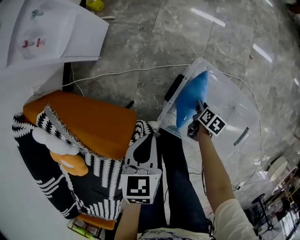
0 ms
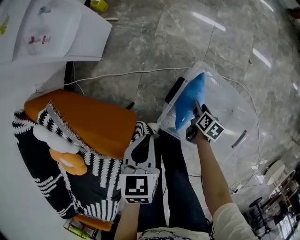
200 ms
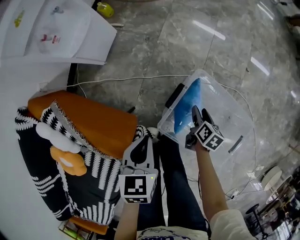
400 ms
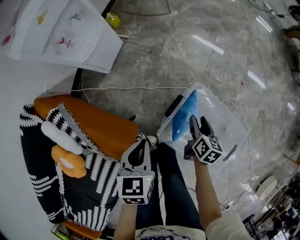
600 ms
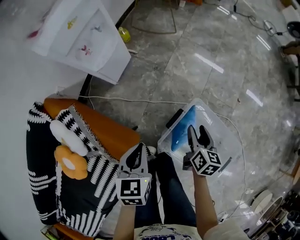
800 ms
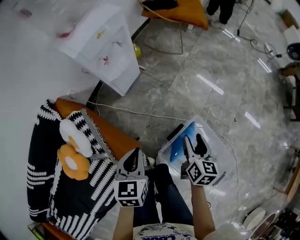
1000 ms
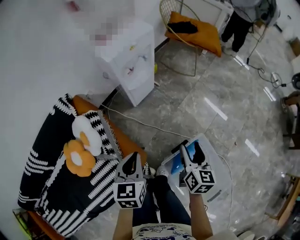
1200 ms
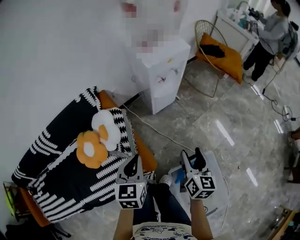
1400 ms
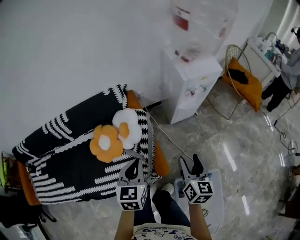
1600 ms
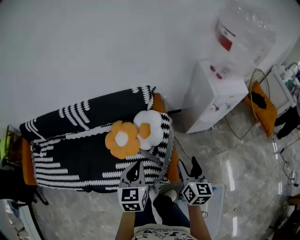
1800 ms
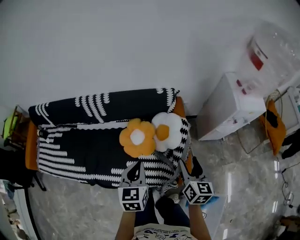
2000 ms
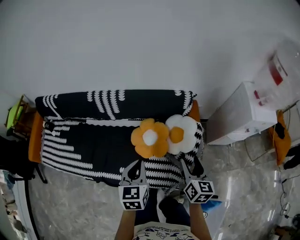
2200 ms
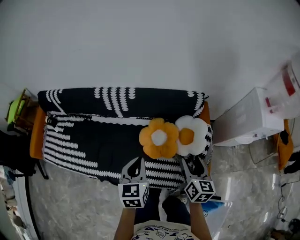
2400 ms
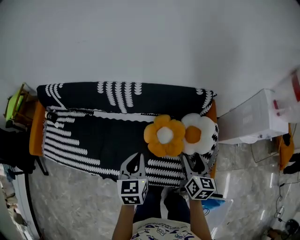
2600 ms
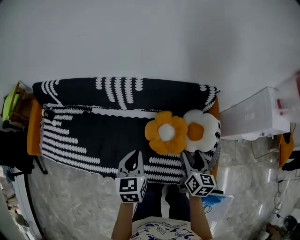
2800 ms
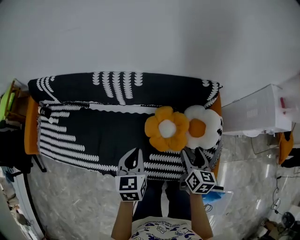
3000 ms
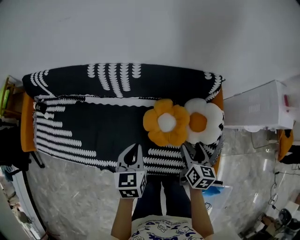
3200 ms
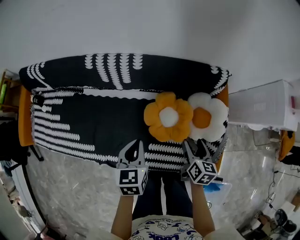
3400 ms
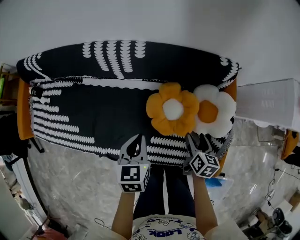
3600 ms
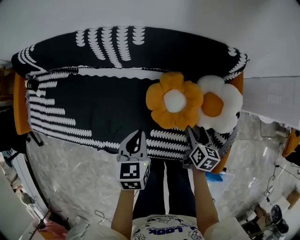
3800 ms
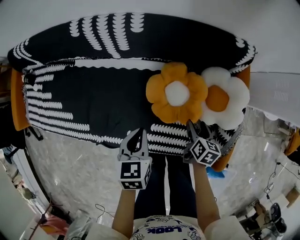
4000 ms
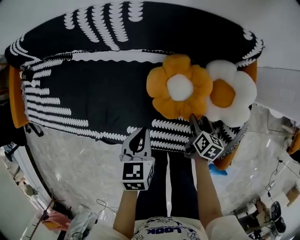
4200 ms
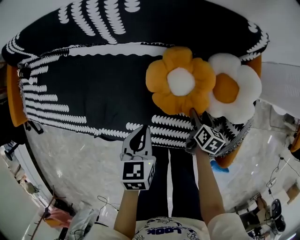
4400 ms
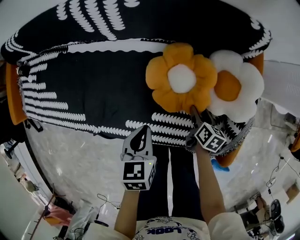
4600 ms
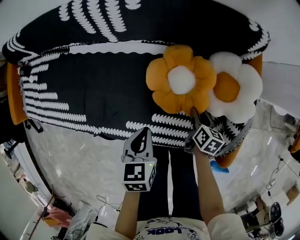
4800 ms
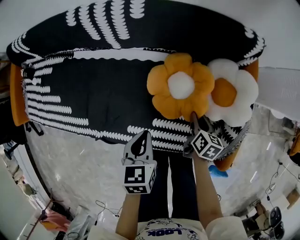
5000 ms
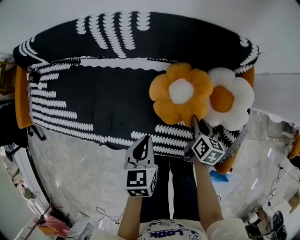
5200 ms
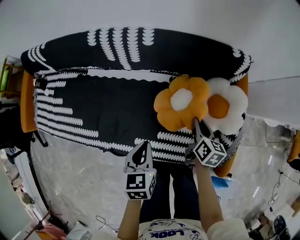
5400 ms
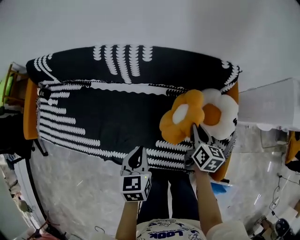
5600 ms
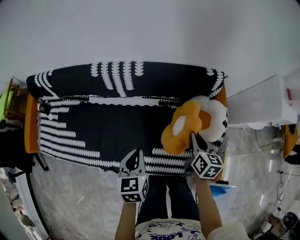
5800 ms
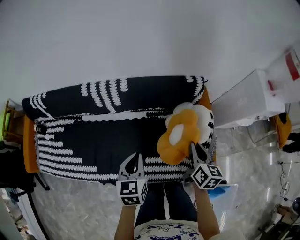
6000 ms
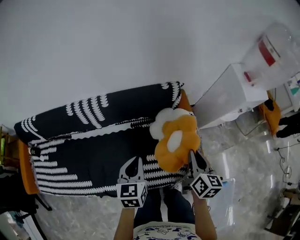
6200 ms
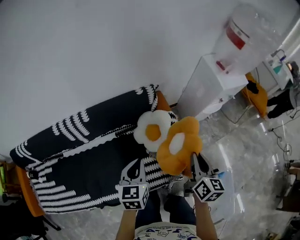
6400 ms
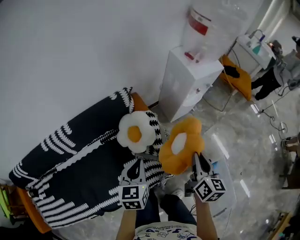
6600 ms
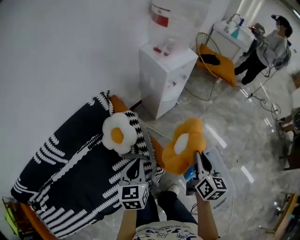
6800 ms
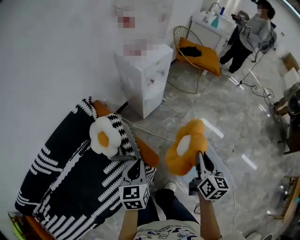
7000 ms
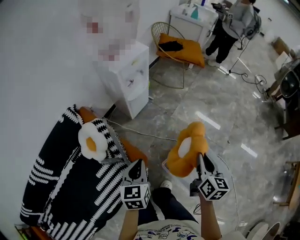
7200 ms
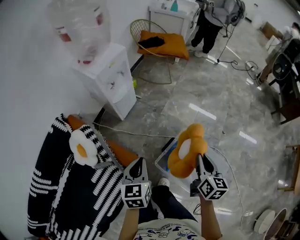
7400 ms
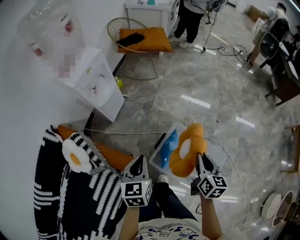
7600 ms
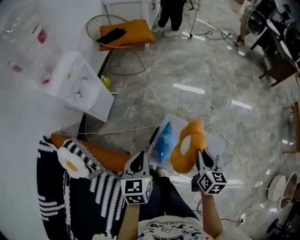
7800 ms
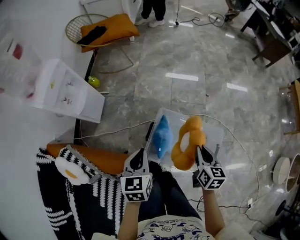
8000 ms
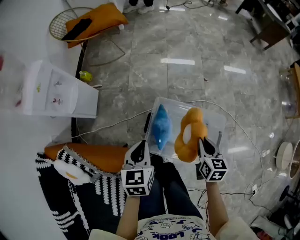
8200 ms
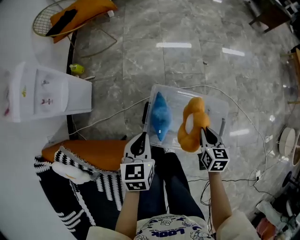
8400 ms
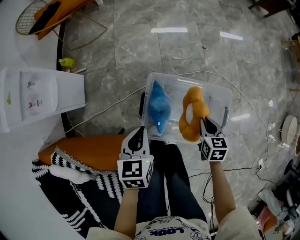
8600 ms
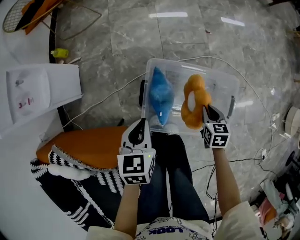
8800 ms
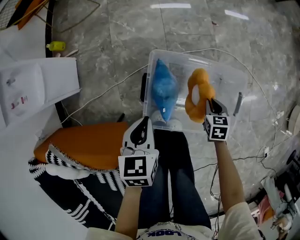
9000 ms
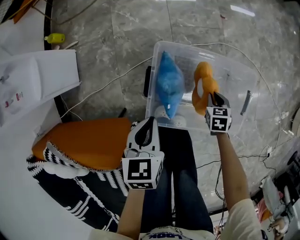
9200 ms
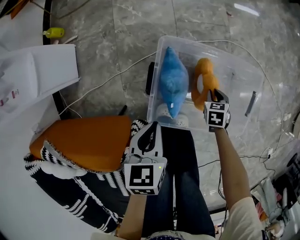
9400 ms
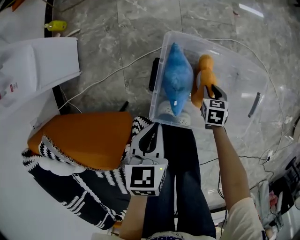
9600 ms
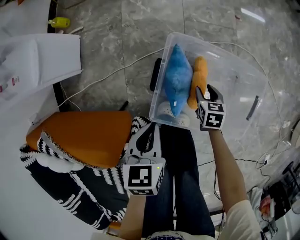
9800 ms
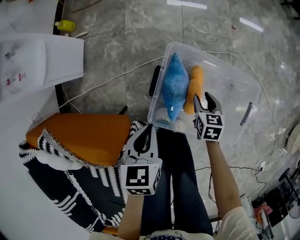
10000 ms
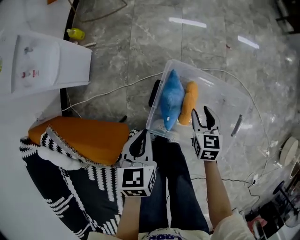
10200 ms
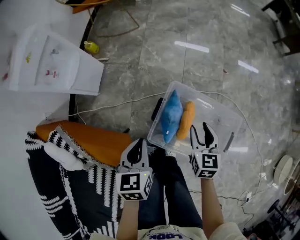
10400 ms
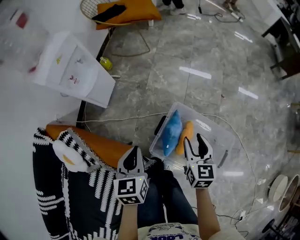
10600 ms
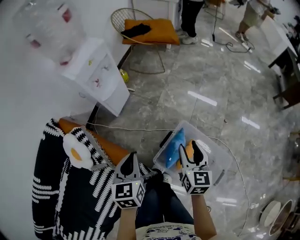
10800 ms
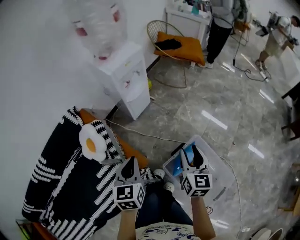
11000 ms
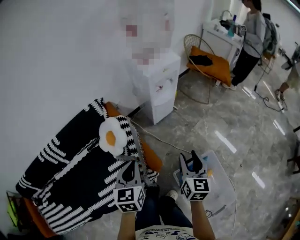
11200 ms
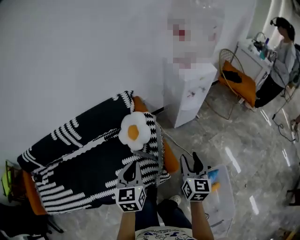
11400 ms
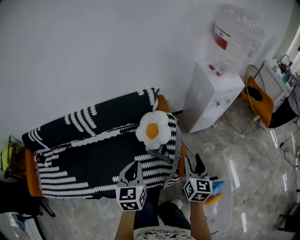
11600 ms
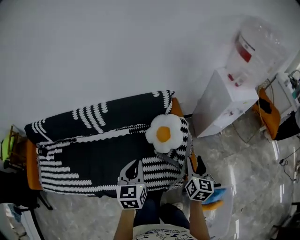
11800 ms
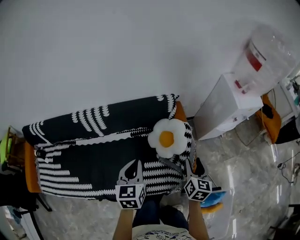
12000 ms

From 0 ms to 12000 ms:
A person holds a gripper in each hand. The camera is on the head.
From 0 ms to 1600 ms: The right gripper goes some 60 cm upward, and tilts its fingers some 40 degrees upward; the left gripper ends up some 50 cm from where it was, and swivels some 60 degrees.
From 1600 ms to 3000 ms: Both grippers are carried about 50 cm. The left gripper changes its angle by about 30 degrees. The right gripper turns by approximately 30 degrees.
From 3000 ms to 4400 ms: The grippers both shift downward by about 25 cm. The right gripper changes its angle by approximately 20 degrees.
From 4400 ms to 6000 ms: The right gripper goes roughly 35 cm upward, turns by some 30 degrees, and closes its fingers, while the left gripper heads upward, covering some 20 cm, and swivels about 20 degrees.
From 6000 ms to 7600 ms: The pair of grippers is taken approximately 70 cm. The right gripper changes its angle by about 70 degrees. The left gripper turns by some 70 degrees.
From 7600 ms to 9000 ms: Both grippers travel together downward, roughly 35 cm. The right gripper angles its fingers downward, by some 40 degrees. Meanwhile the left gripper swivels approximately 40 degrees.
From 9000 ms to 10400 ms: The left gripper goes about 10 cm upward, and rotates approximately 20 degrees; the right gripper travels upward by approximately 20 cm, changes its angle by roughly 30 degrees, and opens its fingers.
From 10400 ms to 12000 ms: Both grippers are carried roughly 70 cm. The right gripper rotates about 60 degrees; the left gripper swivels about 70 degrees.

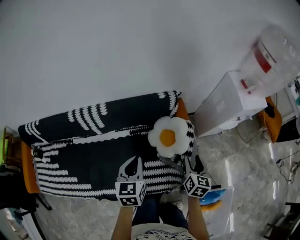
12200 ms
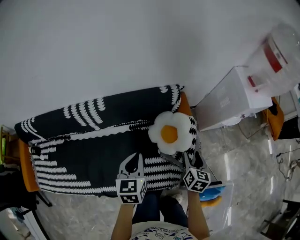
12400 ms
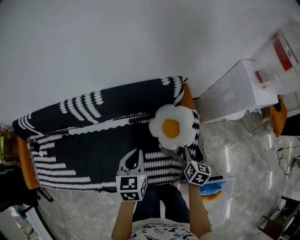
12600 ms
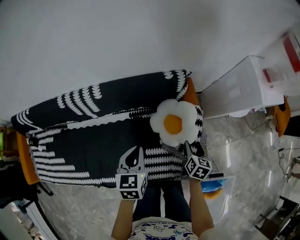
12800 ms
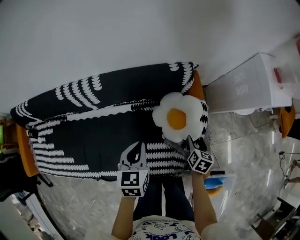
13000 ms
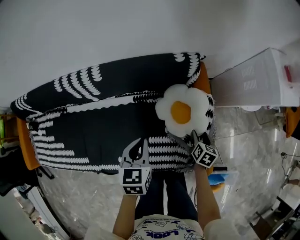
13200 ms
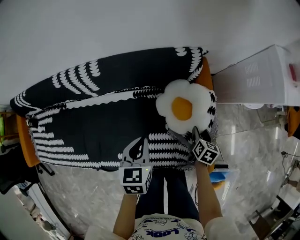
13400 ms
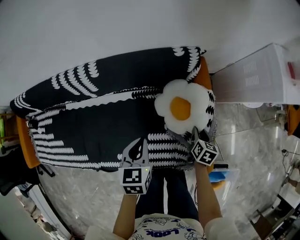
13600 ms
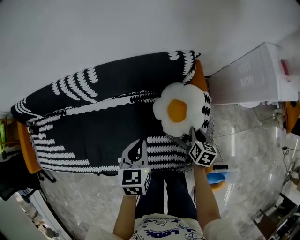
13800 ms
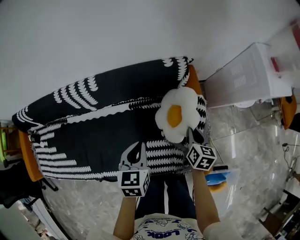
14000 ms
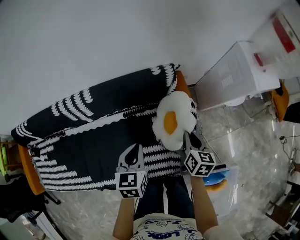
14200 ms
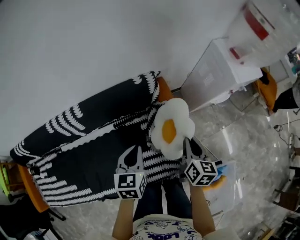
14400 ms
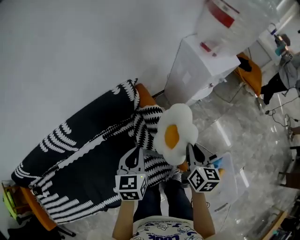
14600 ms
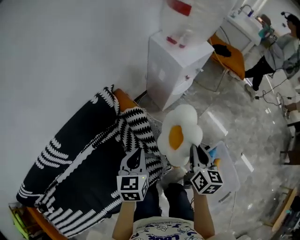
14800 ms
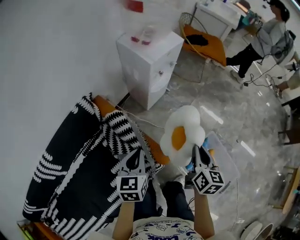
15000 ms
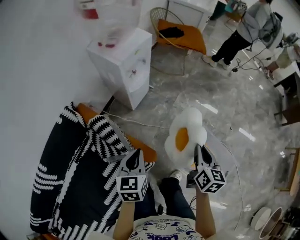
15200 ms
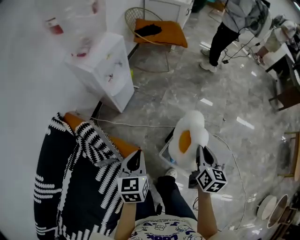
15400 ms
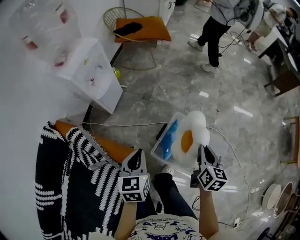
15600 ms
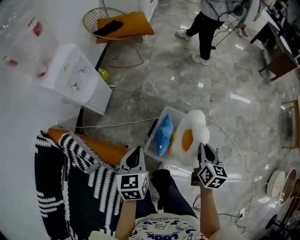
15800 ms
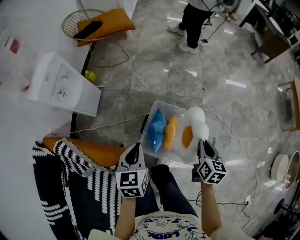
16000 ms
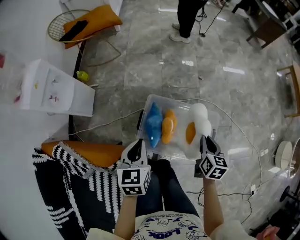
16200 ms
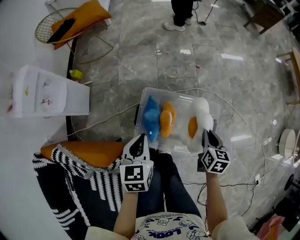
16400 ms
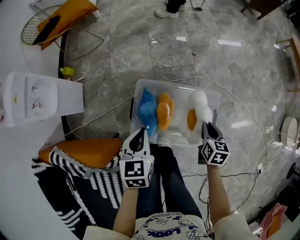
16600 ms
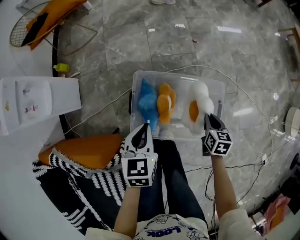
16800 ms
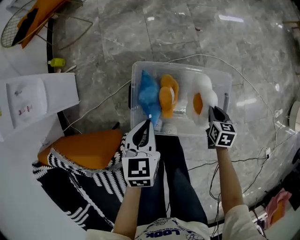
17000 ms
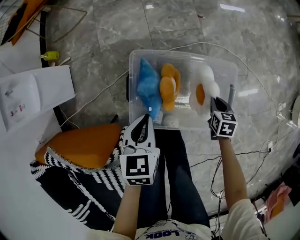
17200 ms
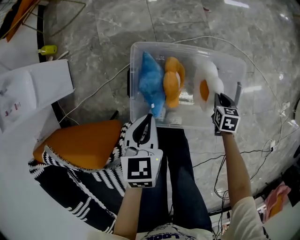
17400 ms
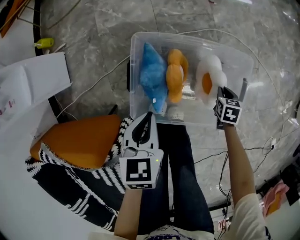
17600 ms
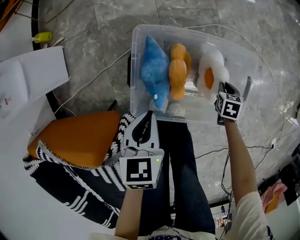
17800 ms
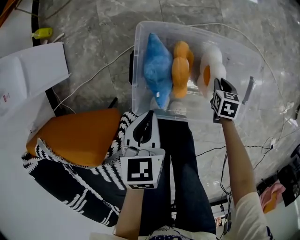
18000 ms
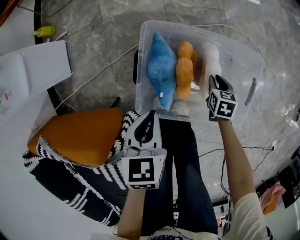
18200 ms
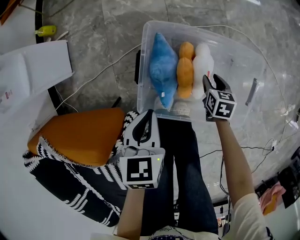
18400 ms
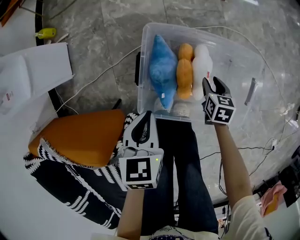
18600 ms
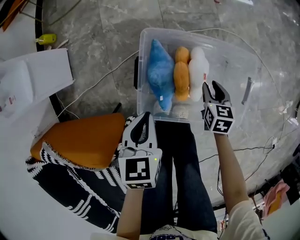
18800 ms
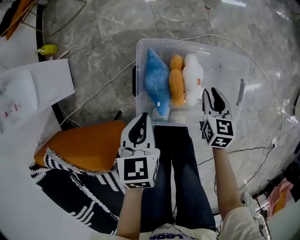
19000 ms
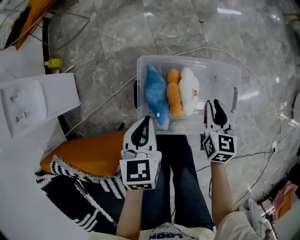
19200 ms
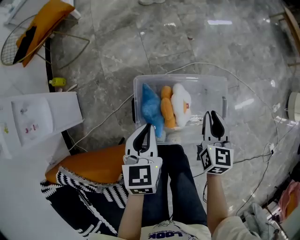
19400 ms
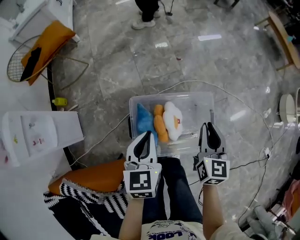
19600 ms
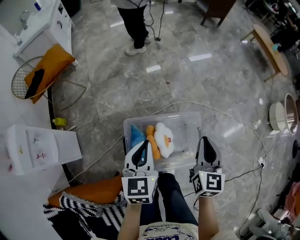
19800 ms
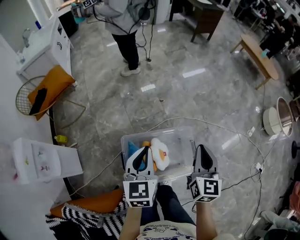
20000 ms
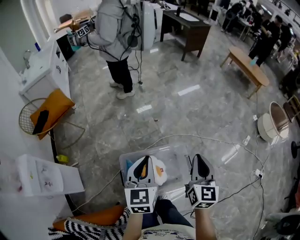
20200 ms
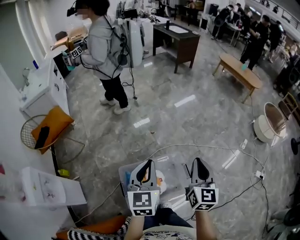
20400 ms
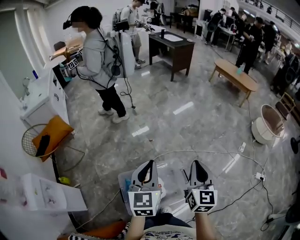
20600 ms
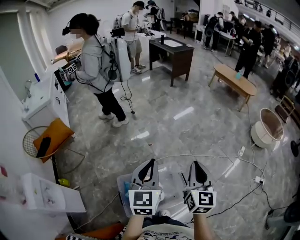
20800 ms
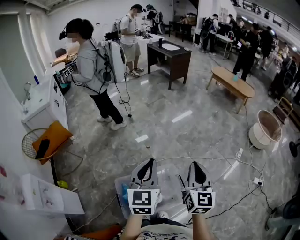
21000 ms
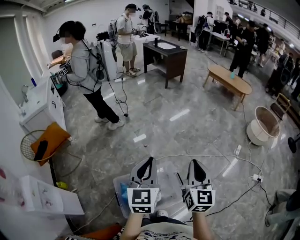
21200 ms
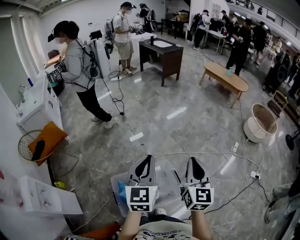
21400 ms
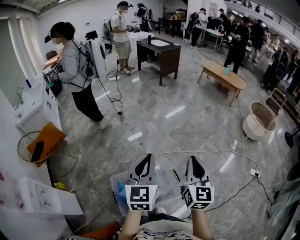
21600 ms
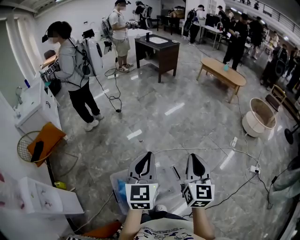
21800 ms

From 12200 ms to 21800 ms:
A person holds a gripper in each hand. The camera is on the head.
From 12200 ms to 13800 ms: The left gripper is displaced downward by approximately 15 cm, while the right gripper heads downward and forward, covering approximately 25 cm, rotates about 20 degrees, and closes.
From 13800 ms to 15400 ms: Both grippers are carried about 60 cm. The right gripper turns by about 60 degrees. The left gripper swivels roughly 60 degrees.
From 15400 ms to 17000 ms: The left gripper moves approximately 50 cm, and changes its angle by about 40 degrees. The right gripper goes about 40 cm downward, and rotates some 30 degrees.
From 17000 ms to 18600 ms: Both grippers move downward and to the left, roughly 20 cm. The right gripper opens its fingers.
From 18600 ms to 20200 ms: The grippers both shift upward by some 60 cm. The right gripper points its fingers about 50 degrees further upward, and closes its fingers. Meanwhile the left gripper angles its fingers upward, by some 30 degrees.
From 20200 ms to 21800 ms: The two grippers go approximately 20 cm to the right and upward.

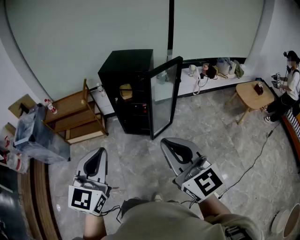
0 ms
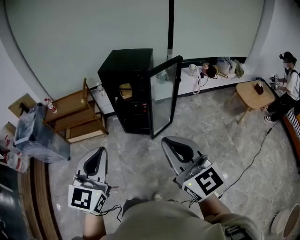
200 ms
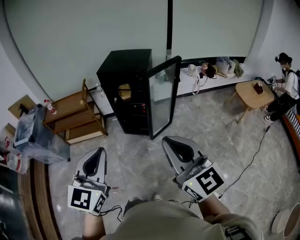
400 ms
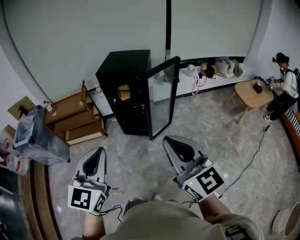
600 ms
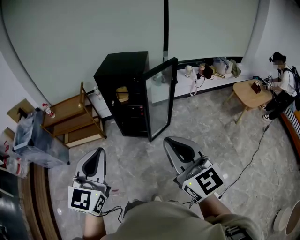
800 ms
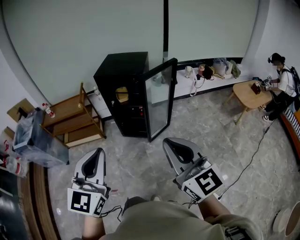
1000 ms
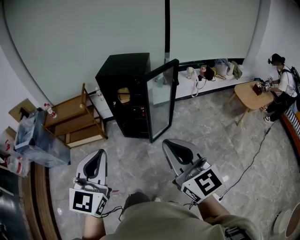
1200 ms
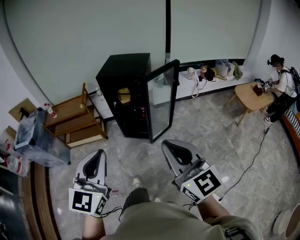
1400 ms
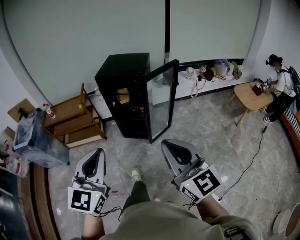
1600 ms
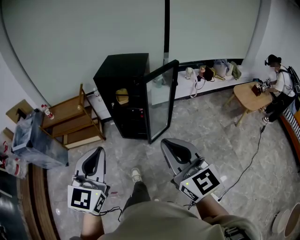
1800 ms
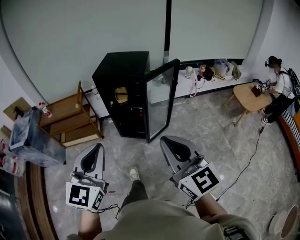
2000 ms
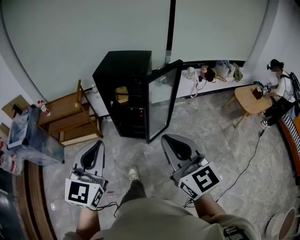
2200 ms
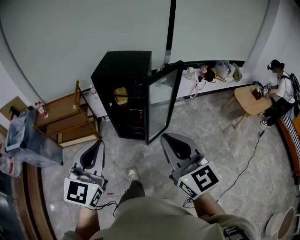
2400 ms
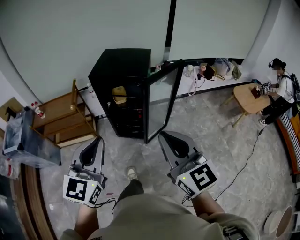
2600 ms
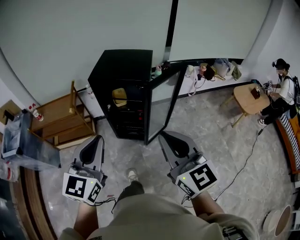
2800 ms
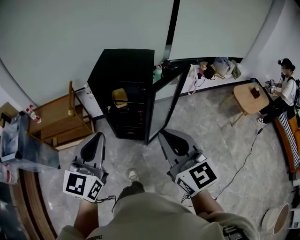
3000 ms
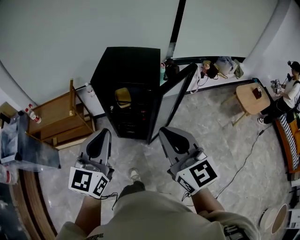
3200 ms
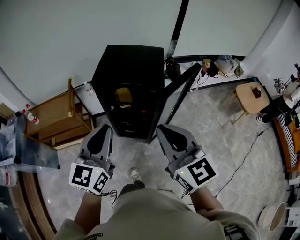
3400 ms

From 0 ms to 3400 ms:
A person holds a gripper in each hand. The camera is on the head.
From 0 ms to 1600 ms: The grippers stay close to where they were, moving slightly.
From 1600 ms to 3400 ms: The right gripper shifts roughly 35 cm forward and to the left, while the left gripper heads forward, covering about 35 cm.
